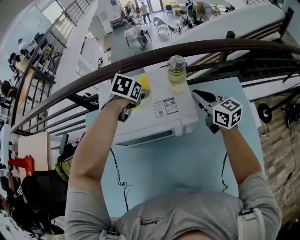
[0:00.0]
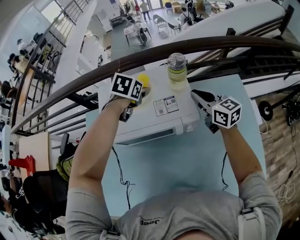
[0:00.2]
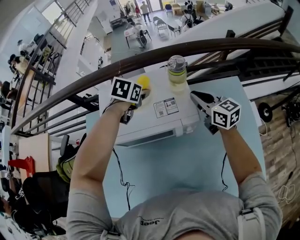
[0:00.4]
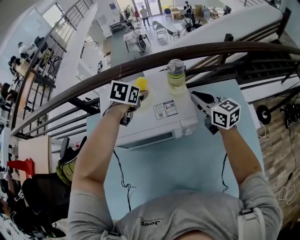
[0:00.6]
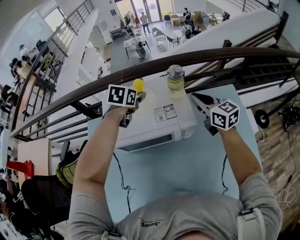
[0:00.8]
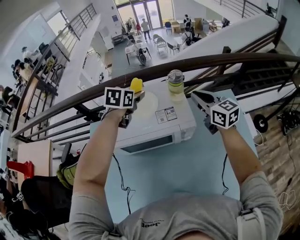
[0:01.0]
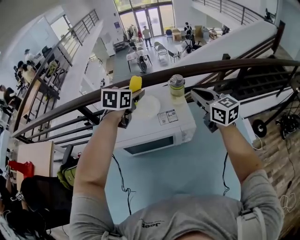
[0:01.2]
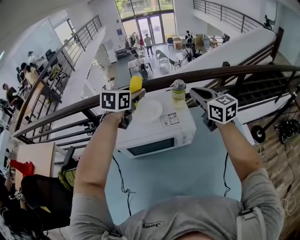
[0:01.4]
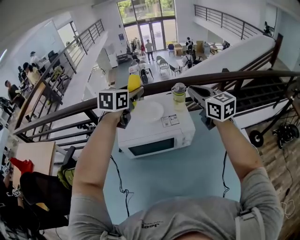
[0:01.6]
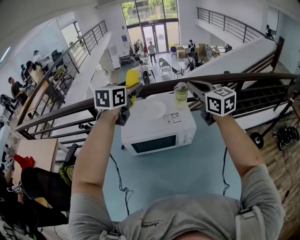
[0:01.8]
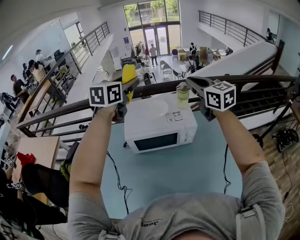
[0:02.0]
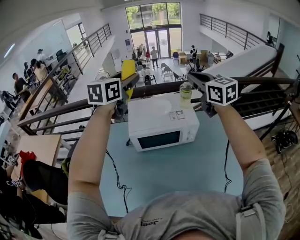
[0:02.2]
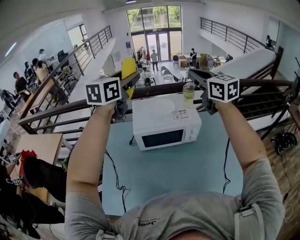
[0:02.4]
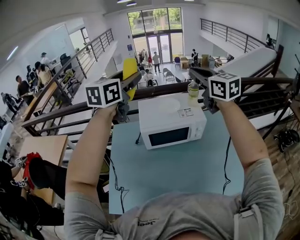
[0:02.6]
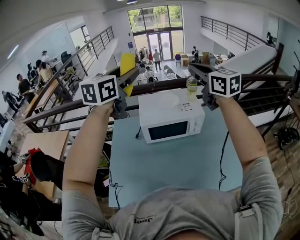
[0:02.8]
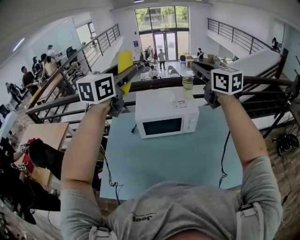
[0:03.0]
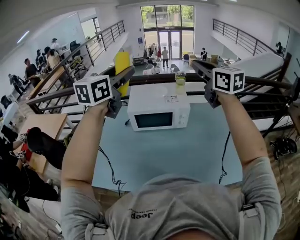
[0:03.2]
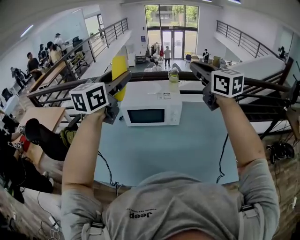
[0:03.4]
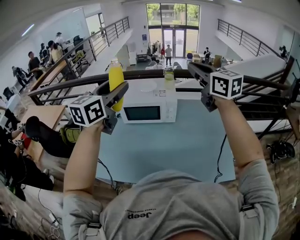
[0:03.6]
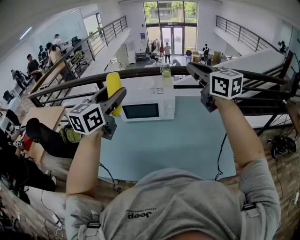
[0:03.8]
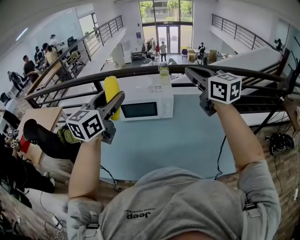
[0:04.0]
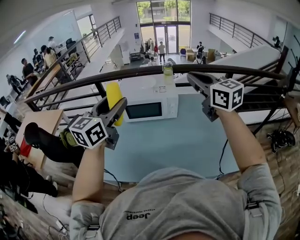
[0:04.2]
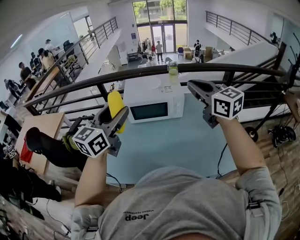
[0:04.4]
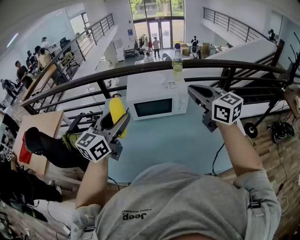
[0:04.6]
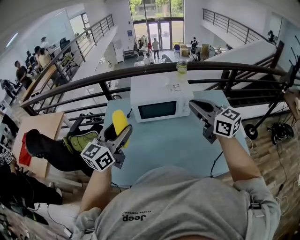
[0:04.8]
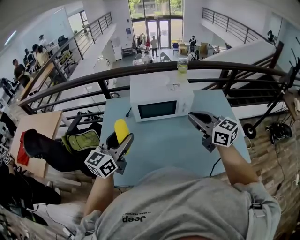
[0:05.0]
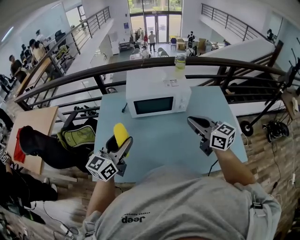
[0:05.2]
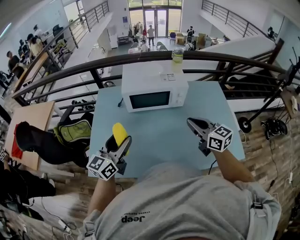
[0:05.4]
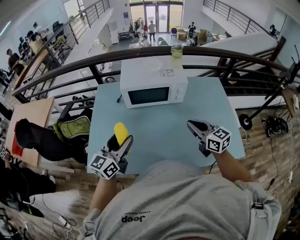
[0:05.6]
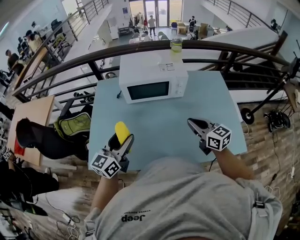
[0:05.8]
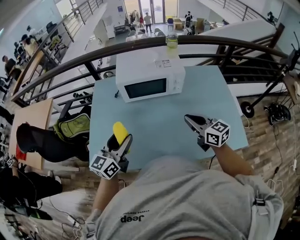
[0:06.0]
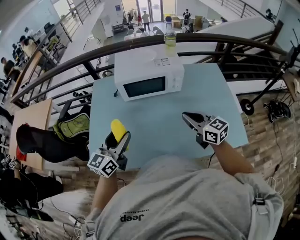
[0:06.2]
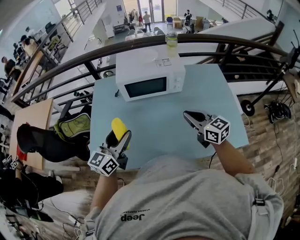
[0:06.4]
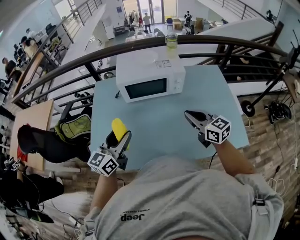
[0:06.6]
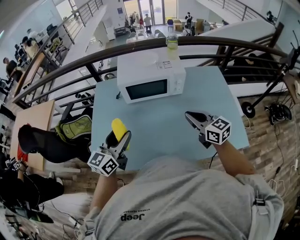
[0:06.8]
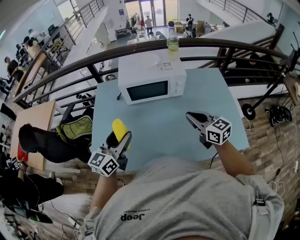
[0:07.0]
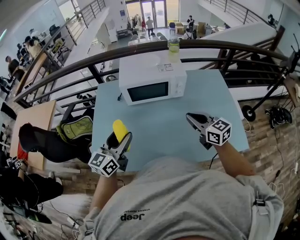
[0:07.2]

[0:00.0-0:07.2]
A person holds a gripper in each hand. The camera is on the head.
0:00.0 to 0:01.4: The two grippers go roughly 20 cm upward. The left gripper angles its fingers upward, by approximately 30 degrees.
0:01.4 to 0:02.8: The right gripper travels upward, backward and to the left by roughly 30 cm. Meanwhile the left gripper moves backward, upward and to the left, approximately 35 cm, and rotates roughly 20 degrees.
0:02.8 to 0:04.4: The left gripper is displaced backward and downward by about 25 cm. The right gripper shifts approximately 20 cm backward, to the right and downward.
0:04.4 to 0:05.8: The two grippers go approximately 25 cm downward.
0:05.8 to 0:07.2: The grippers move only a little.

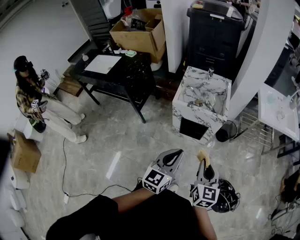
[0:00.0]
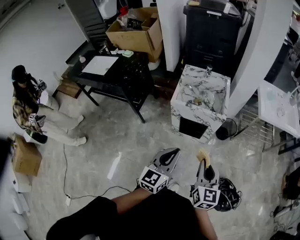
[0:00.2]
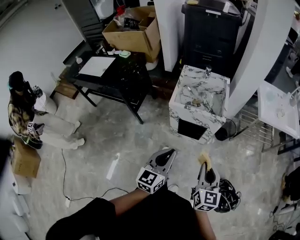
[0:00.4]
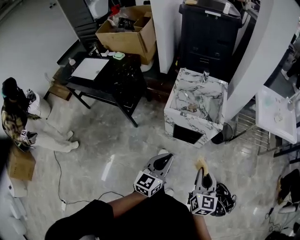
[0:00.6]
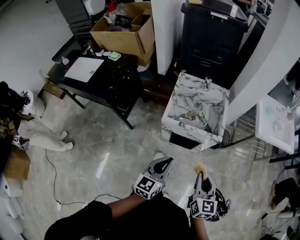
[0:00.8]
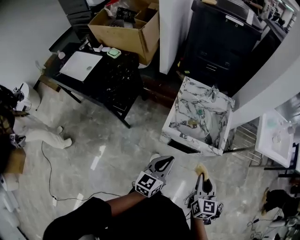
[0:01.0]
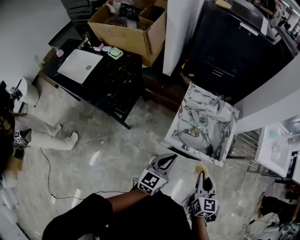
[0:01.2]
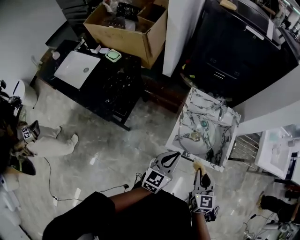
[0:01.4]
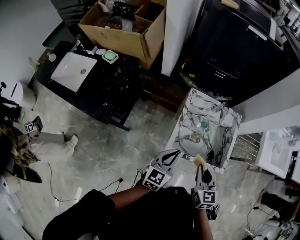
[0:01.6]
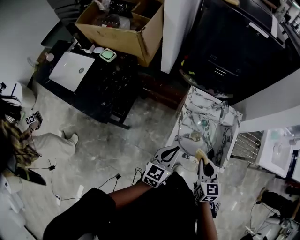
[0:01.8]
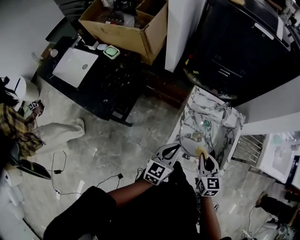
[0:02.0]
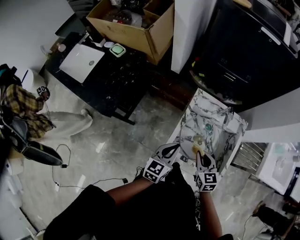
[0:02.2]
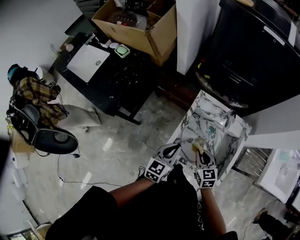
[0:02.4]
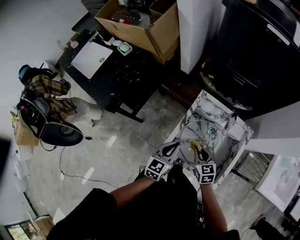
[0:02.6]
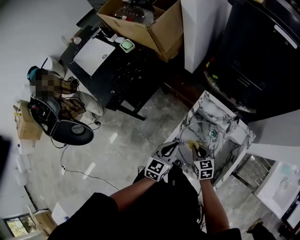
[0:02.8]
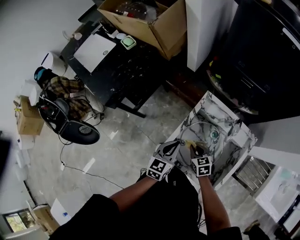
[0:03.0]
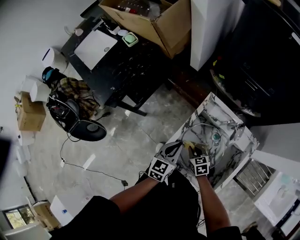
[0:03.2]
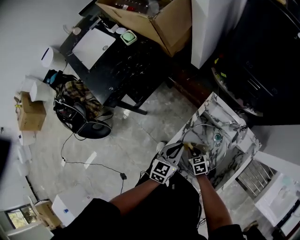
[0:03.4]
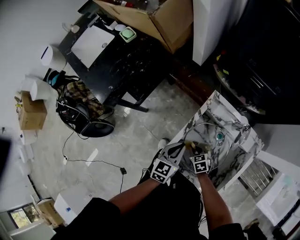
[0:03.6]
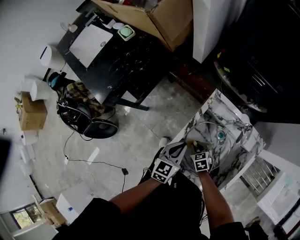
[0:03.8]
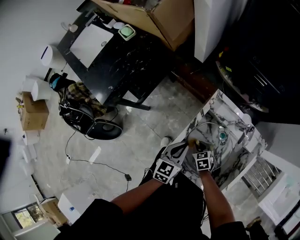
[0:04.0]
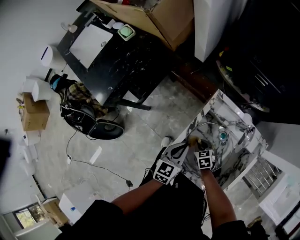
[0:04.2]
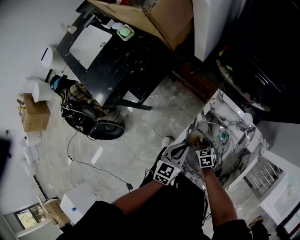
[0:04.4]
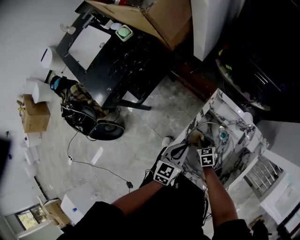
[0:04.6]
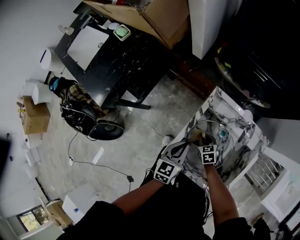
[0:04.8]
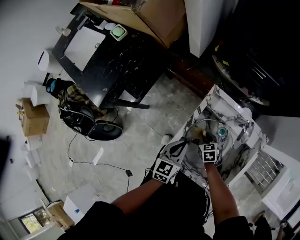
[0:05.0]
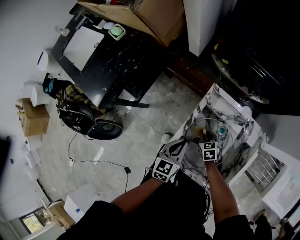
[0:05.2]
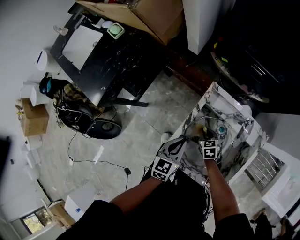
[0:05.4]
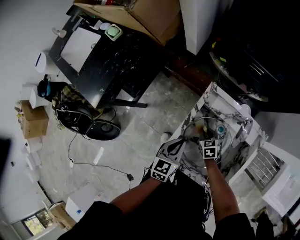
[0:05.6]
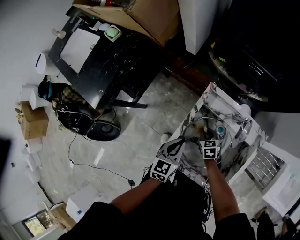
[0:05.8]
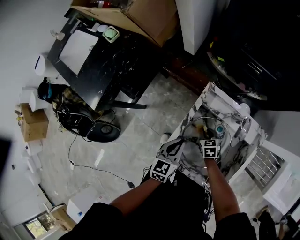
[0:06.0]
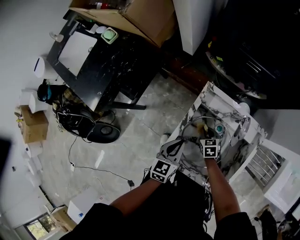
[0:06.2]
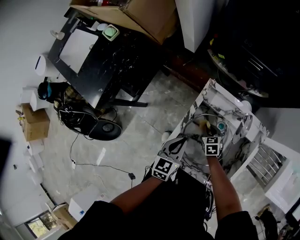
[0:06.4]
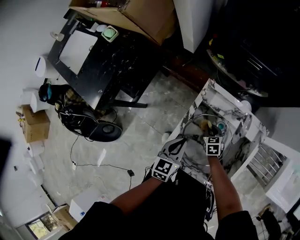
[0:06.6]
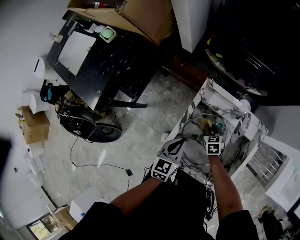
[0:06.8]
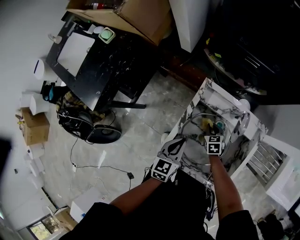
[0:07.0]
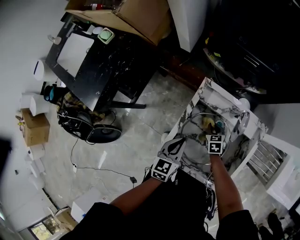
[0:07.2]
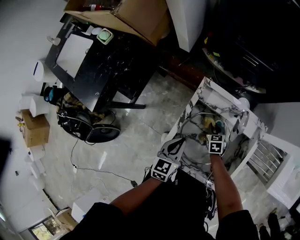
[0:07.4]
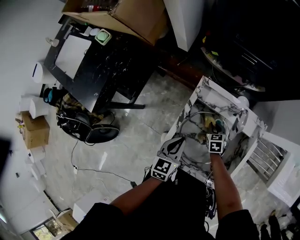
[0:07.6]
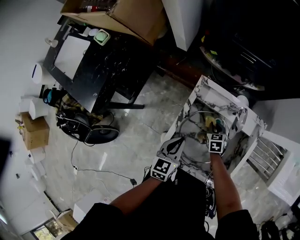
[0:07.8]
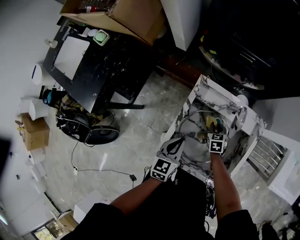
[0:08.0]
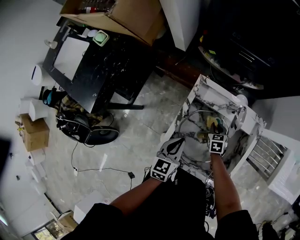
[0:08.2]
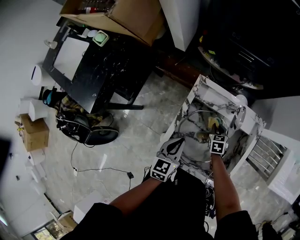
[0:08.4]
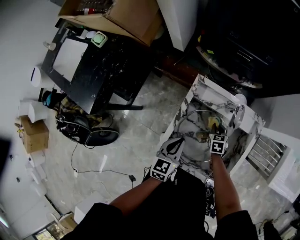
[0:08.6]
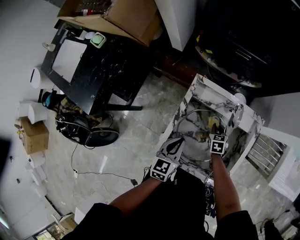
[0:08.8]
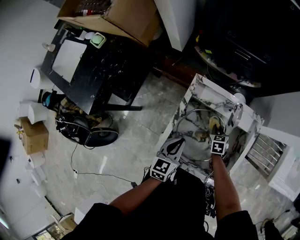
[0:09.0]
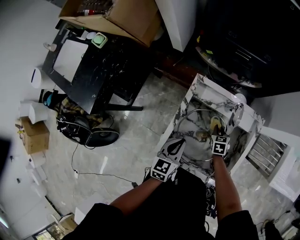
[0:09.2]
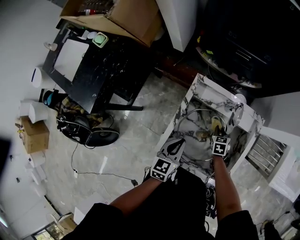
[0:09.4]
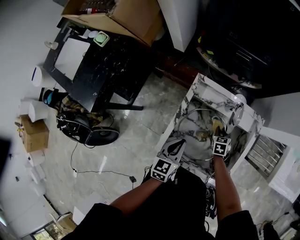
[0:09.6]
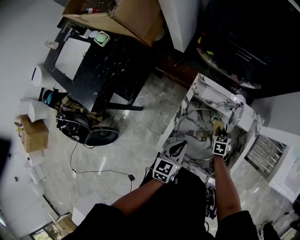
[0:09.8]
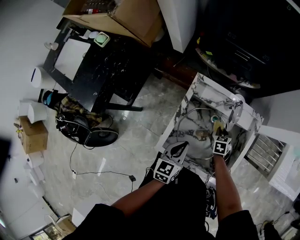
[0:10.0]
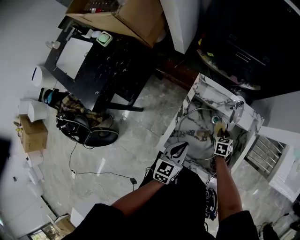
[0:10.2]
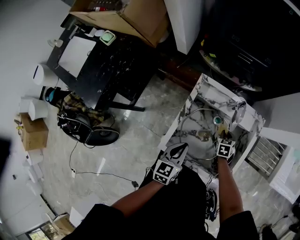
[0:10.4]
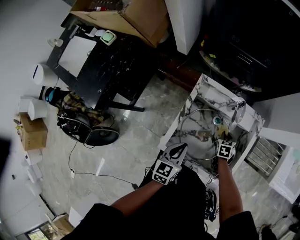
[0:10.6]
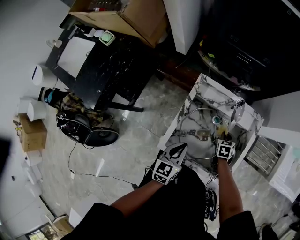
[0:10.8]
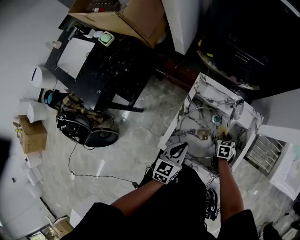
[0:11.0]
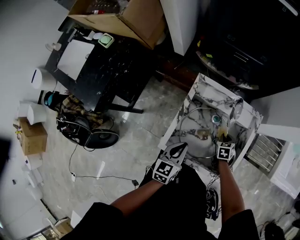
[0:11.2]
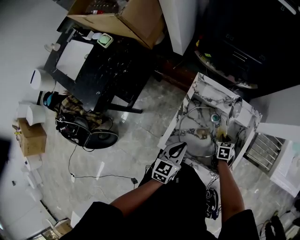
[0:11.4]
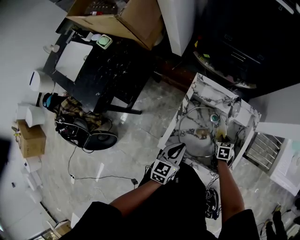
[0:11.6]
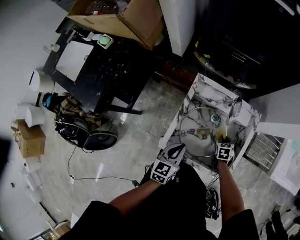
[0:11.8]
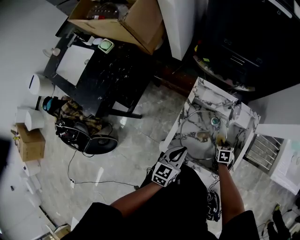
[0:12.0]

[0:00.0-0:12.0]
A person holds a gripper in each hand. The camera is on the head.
0:00.0 to 0:01.6: The two grippers travel together, forward, some 40 cm.
0:01.6 to 0:03.0: The right gripper moves downward, approximately 20 cm, and changes its angle by some 40 degrees. The left gripper travels downward by roughly 10 cm, and rotates about 20 degrees.
0:03.0 to 0:04.4: The right gripper heads downward, covering approximately 10 cm; the left gripper moves some 5 cm.
0:04.4 to 0:06.0: The right gripper moves about 5 cm.
0:06.0 to 0:07.6: The right gripper travels to the right by about 5 cm.
0:07.6 to 0:09.0: The right gripper is displaced to the right by approximately 5 cm.
0:09.0 to 0:10.4: The right gripper shifts by about 5 cm.
0:10.4 to 0:12.0: The right gripper moves backward, about 5 cm.

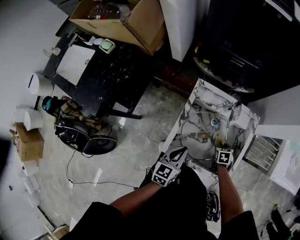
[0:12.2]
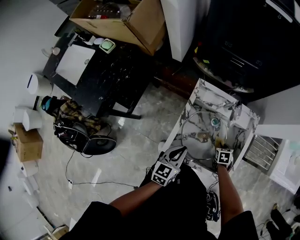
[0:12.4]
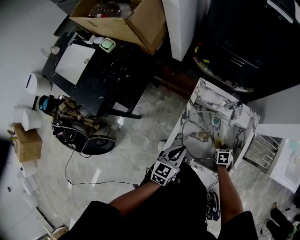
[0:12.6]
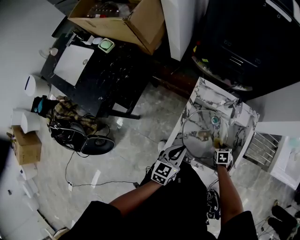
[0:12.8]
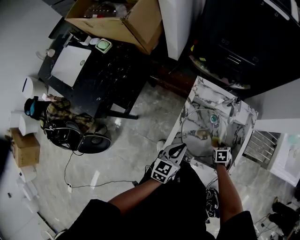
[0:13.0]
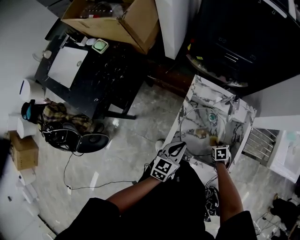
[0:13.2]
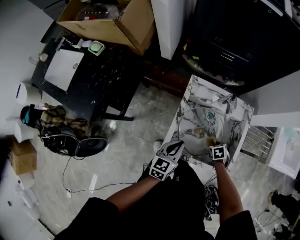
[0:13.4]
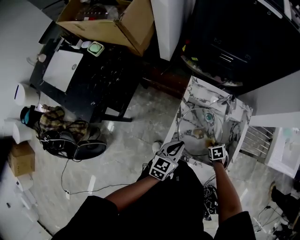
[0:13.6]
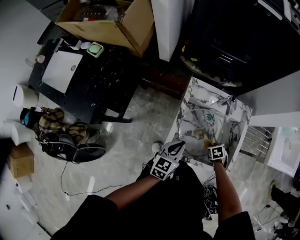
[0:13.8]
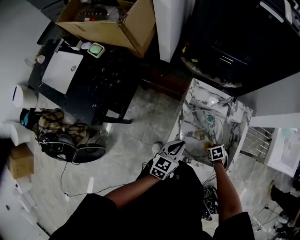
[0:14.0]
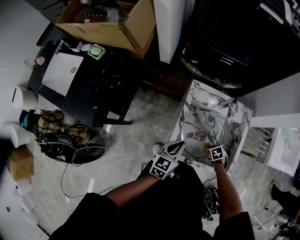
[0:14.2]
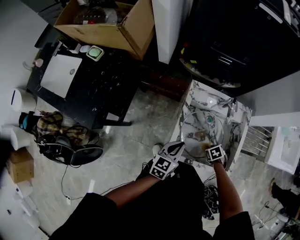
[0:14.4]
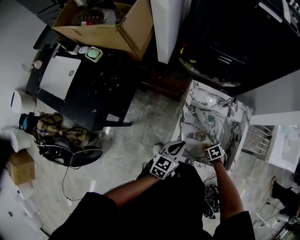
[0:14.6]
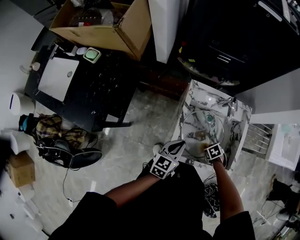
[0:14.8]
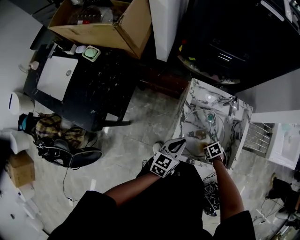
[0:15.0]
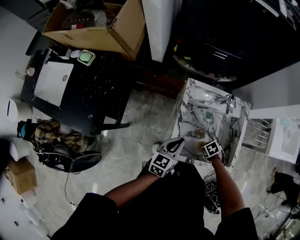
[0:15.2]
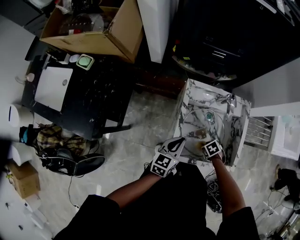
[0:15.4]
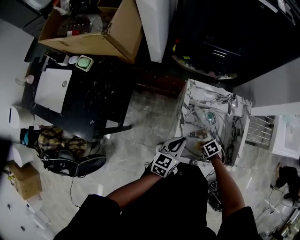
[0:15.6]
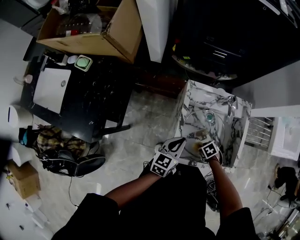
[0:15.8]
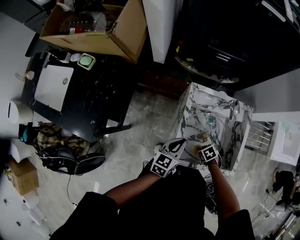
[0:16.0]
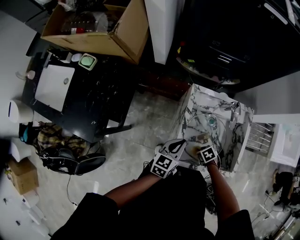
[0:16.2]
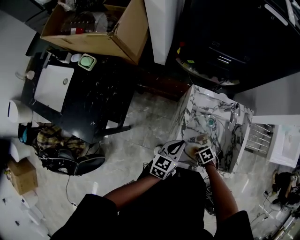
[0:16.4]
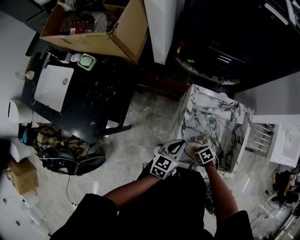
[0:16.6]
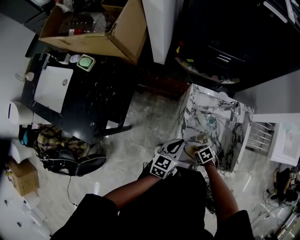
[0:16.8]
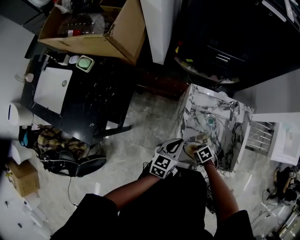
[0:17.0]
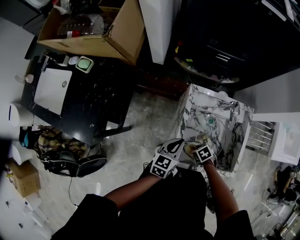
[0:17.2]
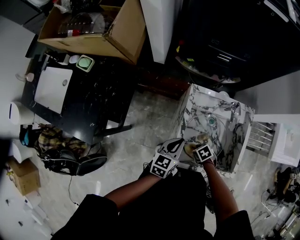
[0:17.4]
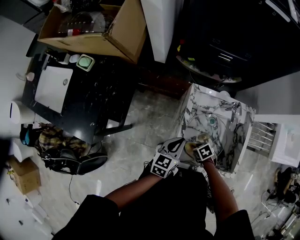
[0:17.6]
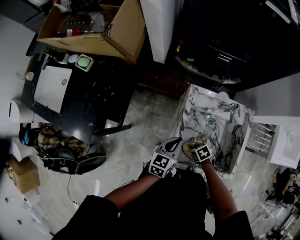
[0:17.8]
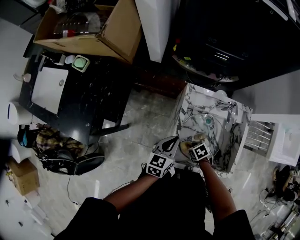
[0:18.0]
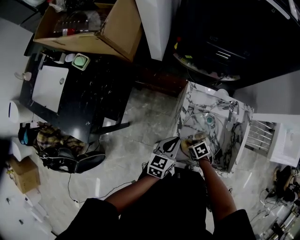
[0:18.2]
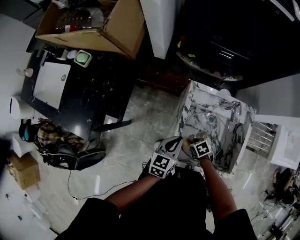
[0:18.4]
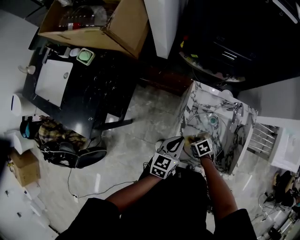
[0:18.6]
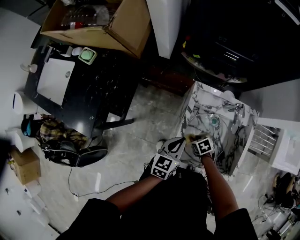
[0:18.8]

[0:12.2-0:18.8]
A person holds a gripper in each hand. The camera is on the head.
0:12.2 to 0:13.8: The right gripper ends up roughly 5 cm from where it was.
0:13.8 to 0:15.4: The right gripper ends up roughly 10 cm from where it was.
0:15.4 to 0:17.2: The right gripper moves approximately 5 cm.
0:17.2 to 0:18.8: The right gripper shifts by some 5 cm.
